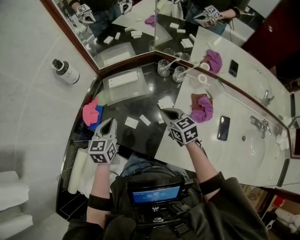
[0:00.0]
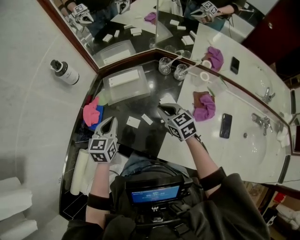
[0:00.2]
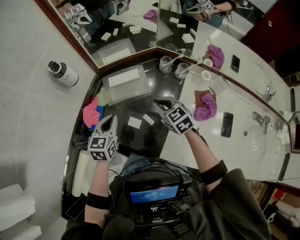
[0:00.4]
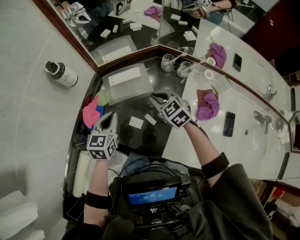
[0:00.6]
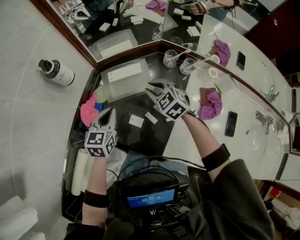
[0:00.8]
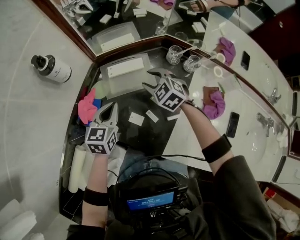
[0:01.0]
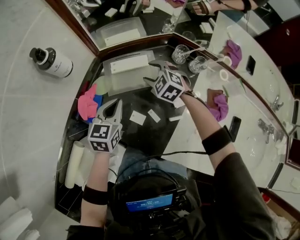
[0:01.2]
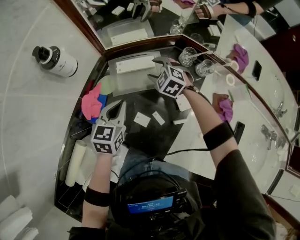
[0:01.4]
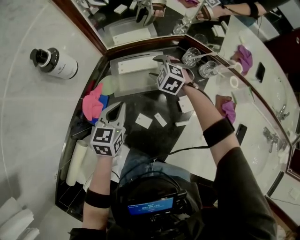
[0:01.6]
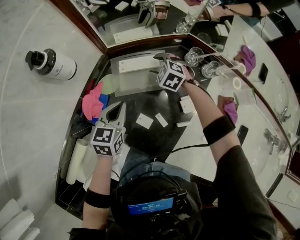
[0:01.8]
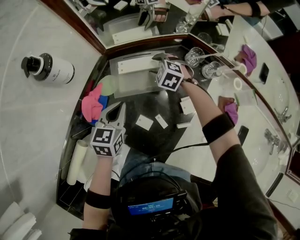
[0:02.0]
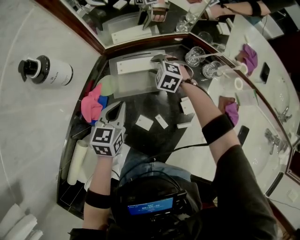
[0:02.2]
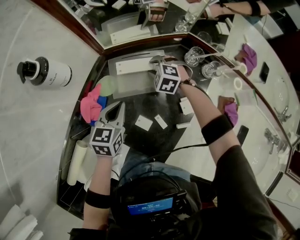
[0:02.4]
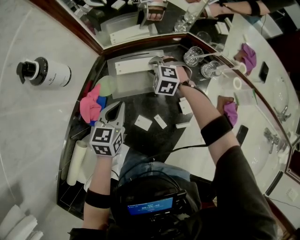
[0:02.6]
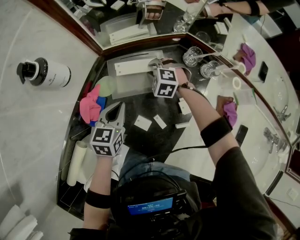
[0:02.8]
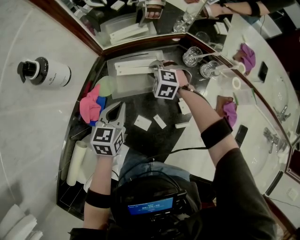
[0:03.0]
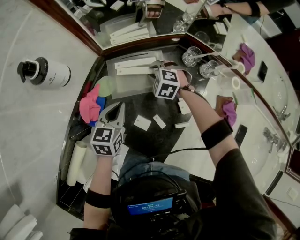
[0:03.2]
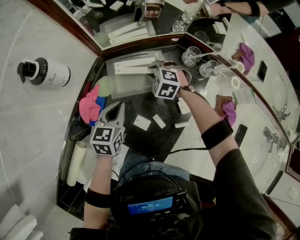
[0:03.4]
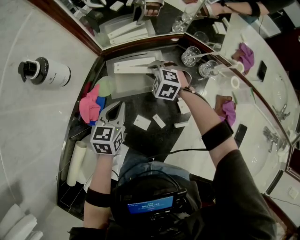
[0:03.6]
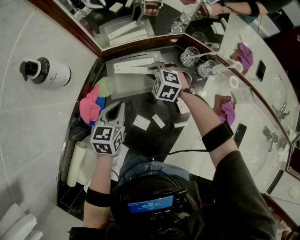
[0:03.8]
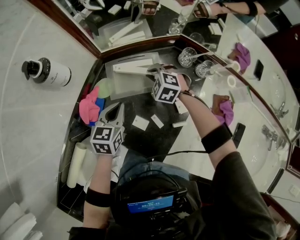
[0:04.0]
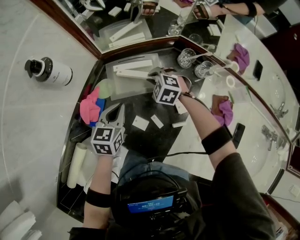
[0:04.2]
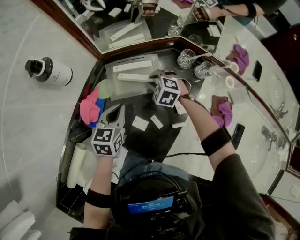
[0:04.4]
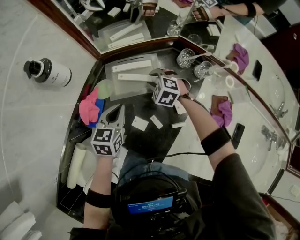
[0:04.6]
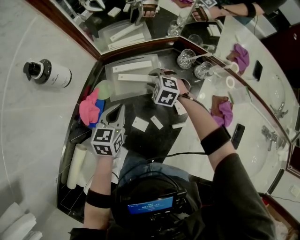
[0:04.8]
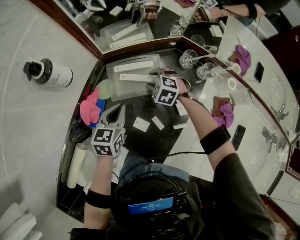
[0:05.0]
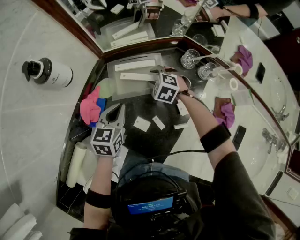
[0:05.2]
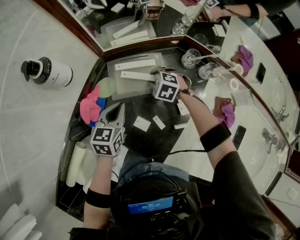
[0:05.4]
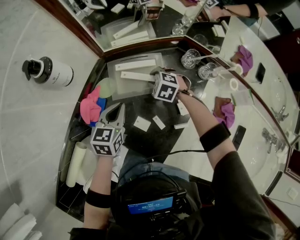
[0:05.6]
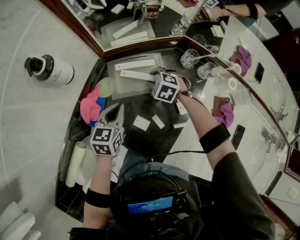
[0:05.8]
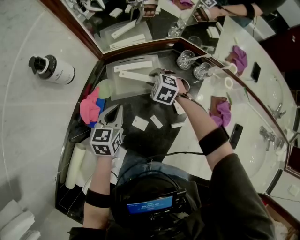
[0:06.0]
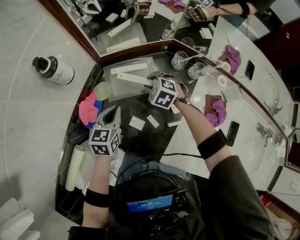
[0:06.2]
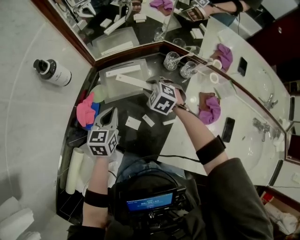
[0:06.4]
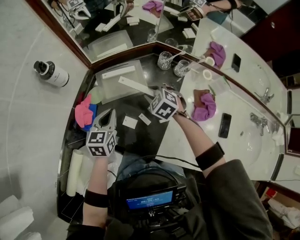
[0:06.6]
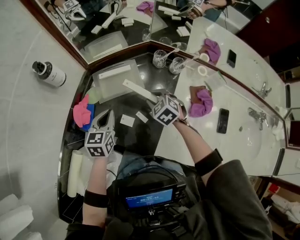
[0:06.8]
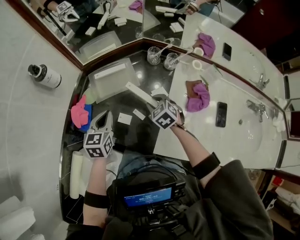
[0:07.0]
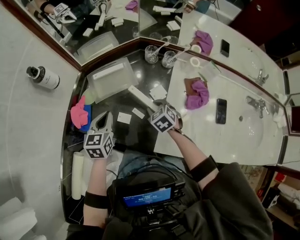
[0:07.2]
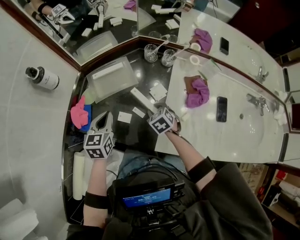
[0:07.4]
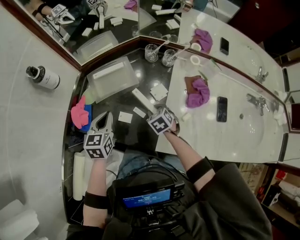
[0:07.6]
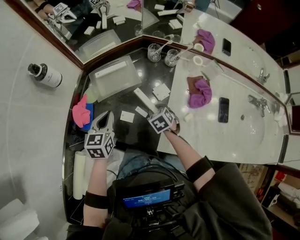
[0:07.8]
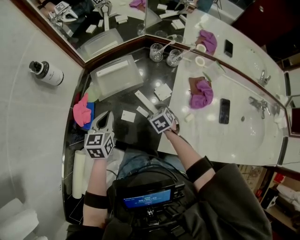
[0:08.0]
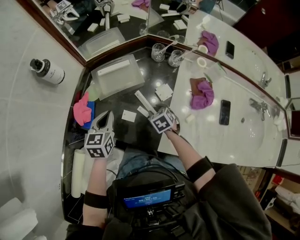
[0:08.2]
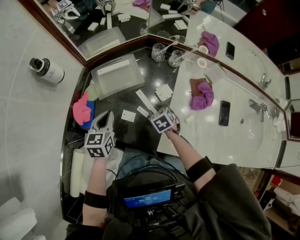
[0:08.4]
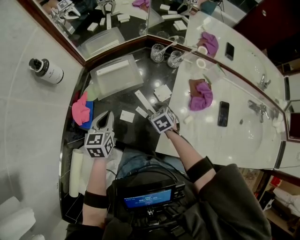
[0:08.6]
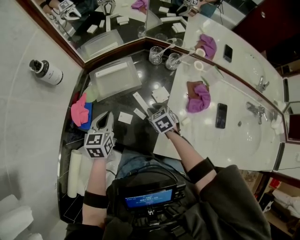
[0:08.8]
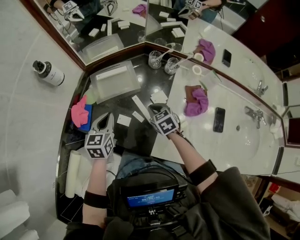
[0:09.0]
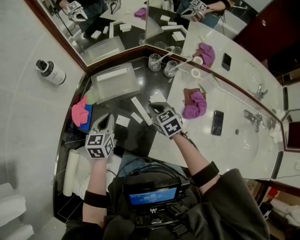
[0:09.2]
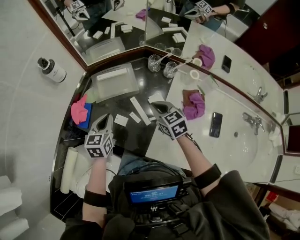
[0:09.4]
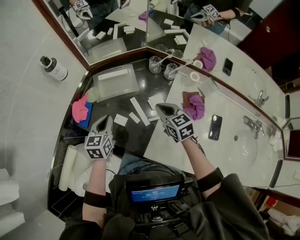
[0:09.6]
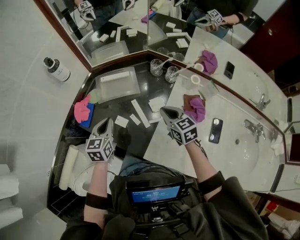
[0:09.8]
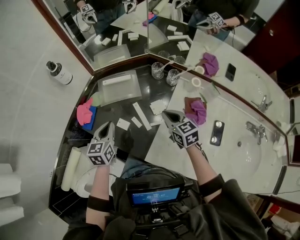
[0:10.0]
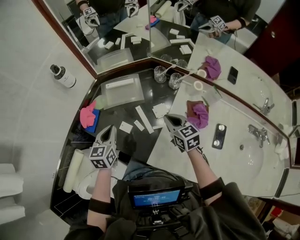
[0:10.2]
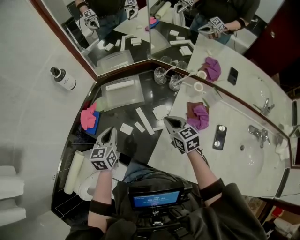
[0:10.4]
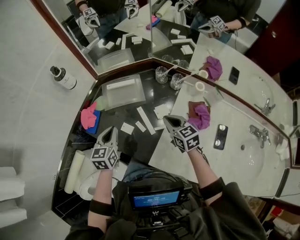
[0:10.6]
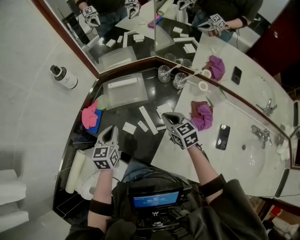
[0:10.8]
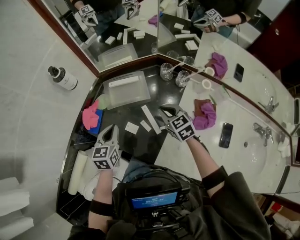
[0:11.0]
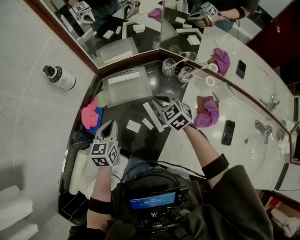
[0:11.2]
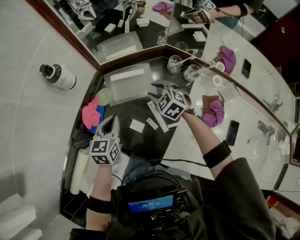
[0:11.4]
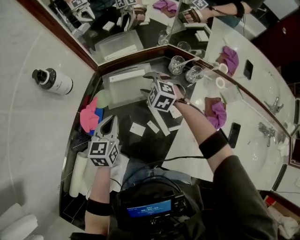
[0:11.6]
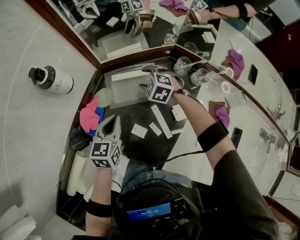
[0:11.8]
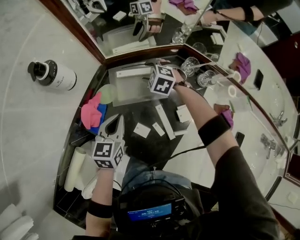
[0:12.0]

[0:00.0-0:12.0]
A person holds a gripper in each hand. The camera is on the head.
0:00.0 to 0:01.6: The right gripper travels forward and downward by about 30 cm, rotates around the line of its fingers by some 50 degrees, counterclockwise from behind, and opens up. The left gripper moves forward and downward, roughly 10 cm.
0:01.6 to 0:03.0: The right gripper closes up.
0:03.0 to 0:06.0: There are only small adjustments of the grippers.
0:06.0 to 0:07.6: The right gripper shifts about 25 cm backward and to the right, and rotates around the line of its fingers by roughly 50 degrees, clockwise from behind, while the left gripper goes roughly 5 cm backward.
0:07.6 to 0:09.0: The right gripper heads upward, covering approximately 5 cm.
0:09.0 to 0:10.4: The right gripper goes about 10 cm upward and to the right, and rotates some 20 degrees. The left gripper ends up some 5 cm from where it was.
0:10.4 to 0:12.0: The right gripper shifts some 35 cm forward, to the left and downward, rotates around the line of its fingers by approximately 50 degrees, counterclockwise from behind, and opens. Meanwhile the left gripper moves forward and downward, some 15 cm.

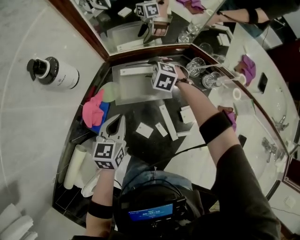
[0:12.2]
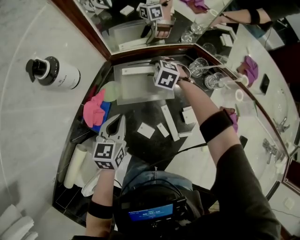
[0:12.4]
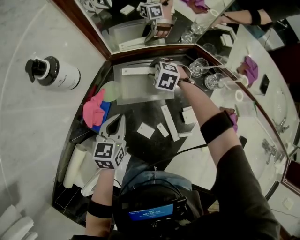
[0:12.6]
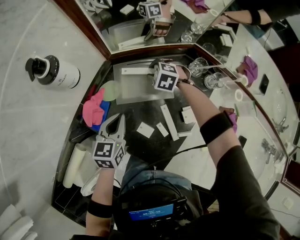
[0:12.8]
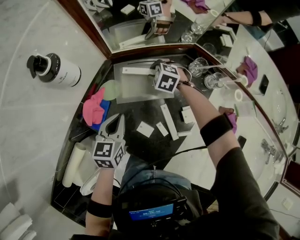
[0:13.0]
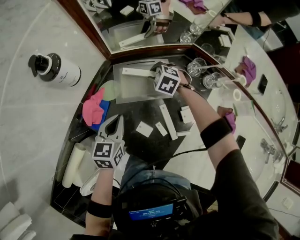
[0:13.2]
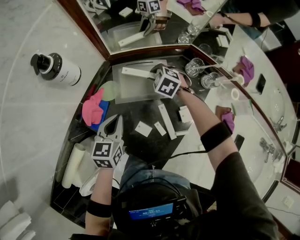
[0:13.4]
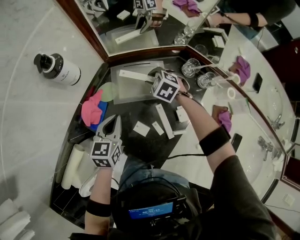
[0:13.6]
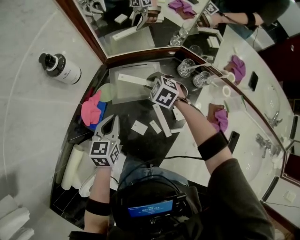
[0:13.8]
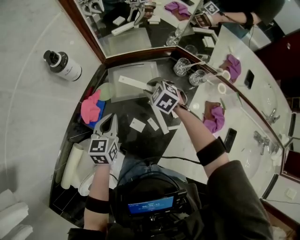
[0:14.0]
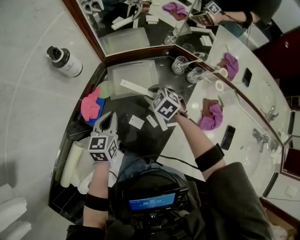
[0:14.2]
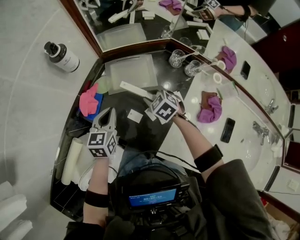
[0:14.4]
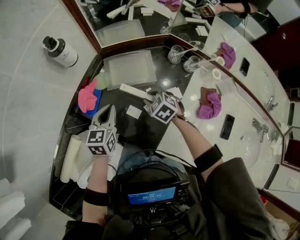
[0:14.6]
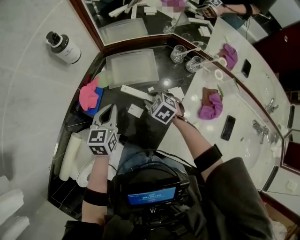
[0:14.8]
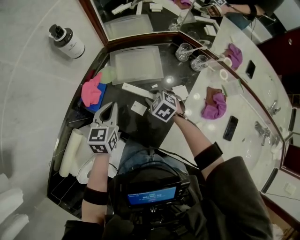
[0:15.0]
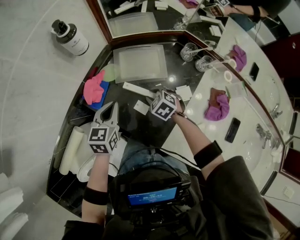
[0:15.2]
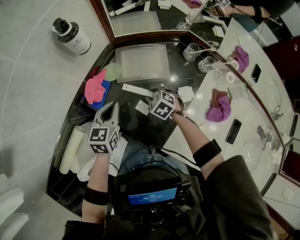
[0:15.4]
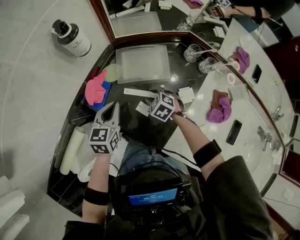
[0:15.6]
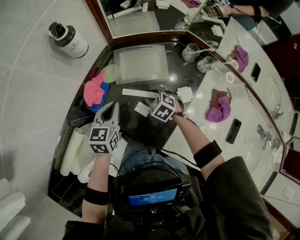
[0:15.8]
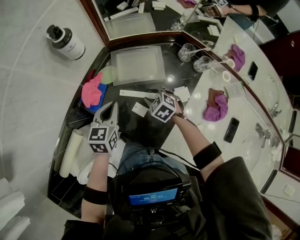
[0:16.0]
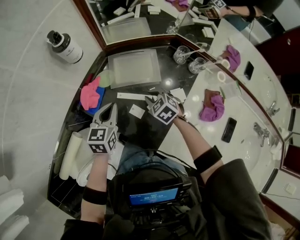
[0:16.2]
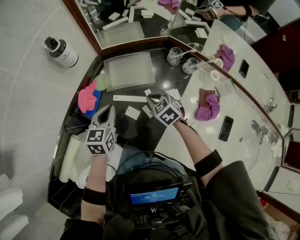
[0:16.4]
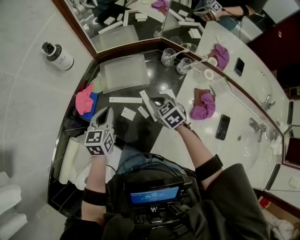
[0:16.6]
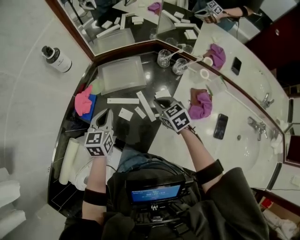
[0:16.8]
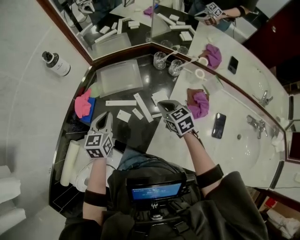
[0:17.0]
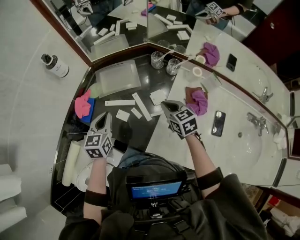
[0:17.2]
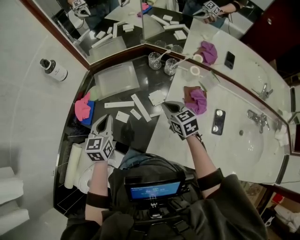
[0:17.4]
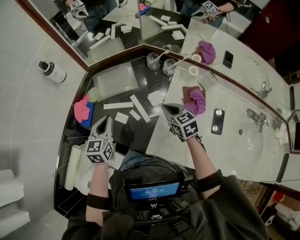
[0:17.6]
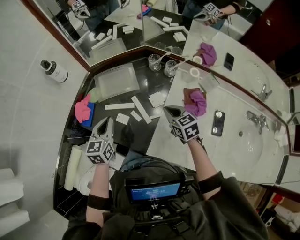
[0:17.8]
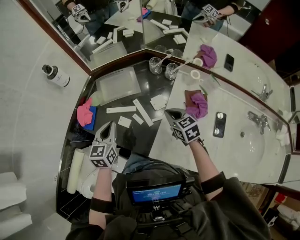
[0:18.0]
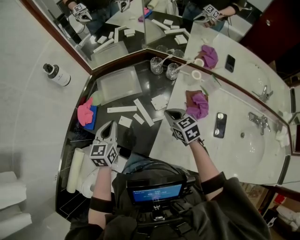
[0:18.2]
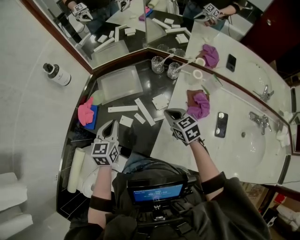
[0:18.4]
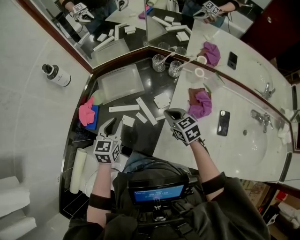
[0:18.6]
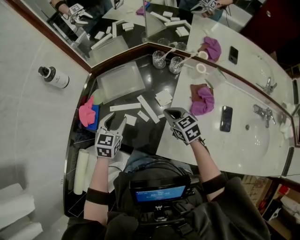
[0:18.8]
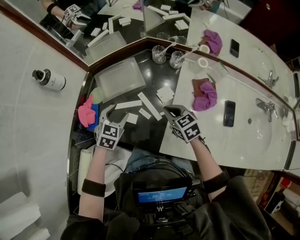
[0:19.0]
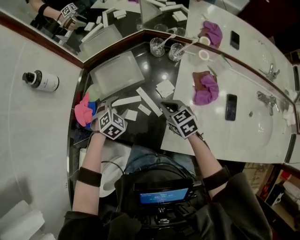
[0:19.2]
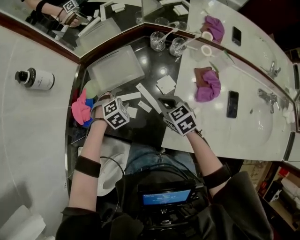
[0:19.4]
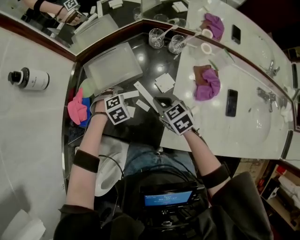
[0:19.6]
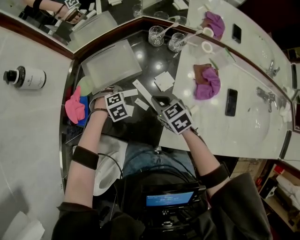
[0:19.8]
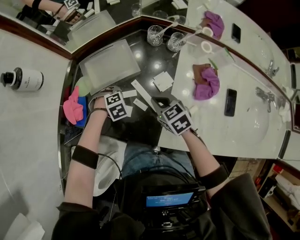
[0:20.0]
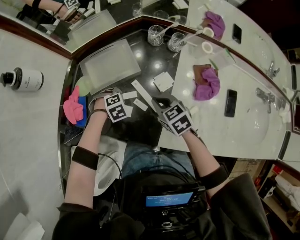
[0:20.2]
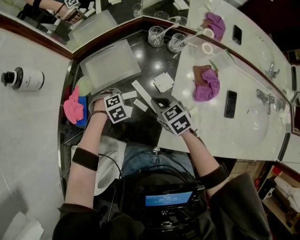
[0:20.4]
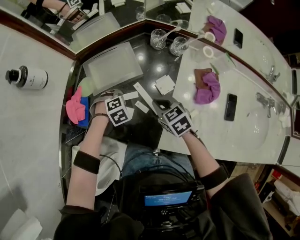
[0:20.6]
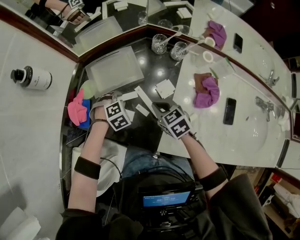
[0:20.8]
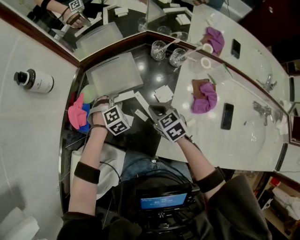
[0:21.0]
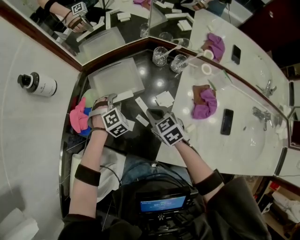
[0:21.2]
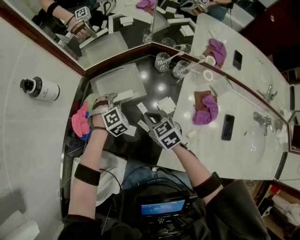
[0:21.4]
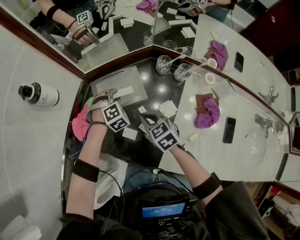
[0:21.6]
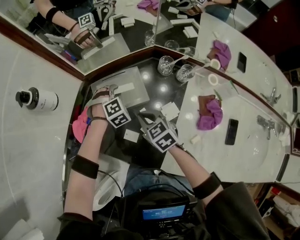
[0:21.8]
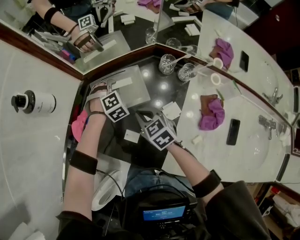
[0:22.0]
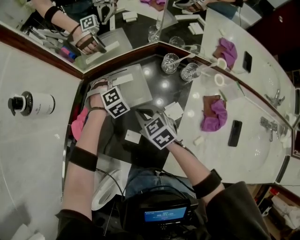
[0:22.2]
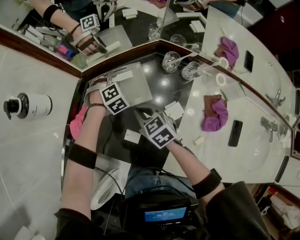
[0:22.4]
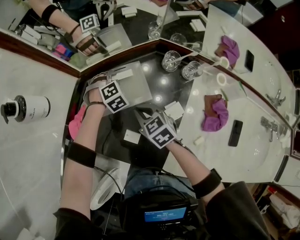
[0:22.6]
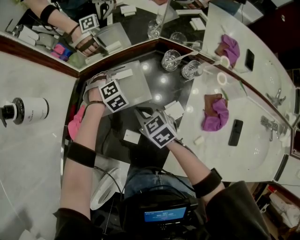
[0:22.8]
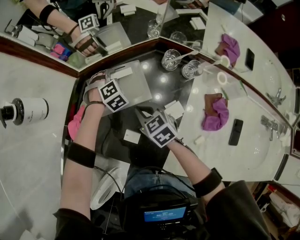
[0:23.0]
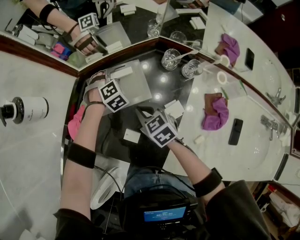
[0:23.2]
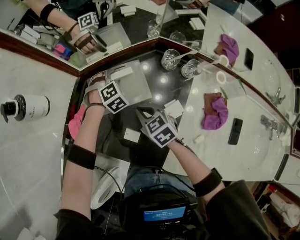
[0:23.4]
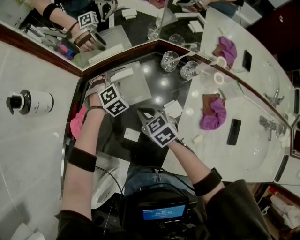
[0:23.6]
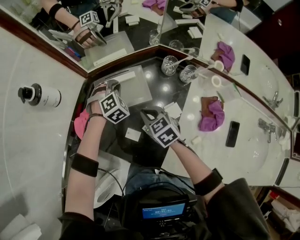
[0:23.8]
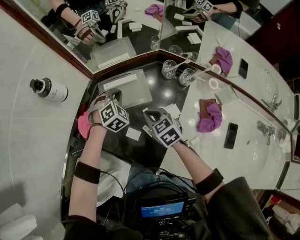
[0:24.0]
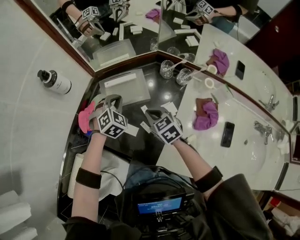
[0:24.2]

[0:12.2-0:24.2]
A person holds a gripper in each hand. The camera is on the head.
0:12.2 to 0:13.8: The right gripper heads backward and upward, covering approximately 10 cm.
0:13.8 to 0:15.2: The right gripper goes roughly 15 cm backward.
0:15.2 to 0:16.6: The right gripper travels upward and to the right by about 10 cm, rotates approximately 20 degrees, and closes its fingers. Meanwhile the left gripper shifts by some 5 cm.
0:16.6 to 0:18.2: The left gripper shifts by approximately 5 cm. Meanwhile the right gripper goes about 15 cm to the right and backward.
0:18.2 to 0:19.8: The left gripper goes some 25 cm downward, tilts its fingers approximately 50 degrees downward, and opens. The right gripper shifts by about 10 cm.
0:19.8 to 0:21.2: The left gripper heads upward, covering about 10 cm, and changes its angle by about 30 degrees.
0:21.2 to 0:22.6: The two grippers go approximately 10 cm forward.
0:22.6 to 0:24.2: The right gripper goes roughly 10 cm backward and upward, while the left gripper shifts roughly 20 cm upward and backward, and changes its angle by roughly 20 degrees.
